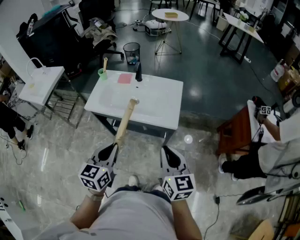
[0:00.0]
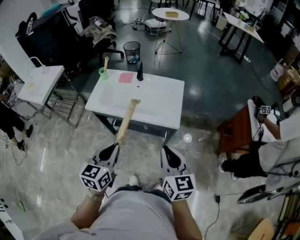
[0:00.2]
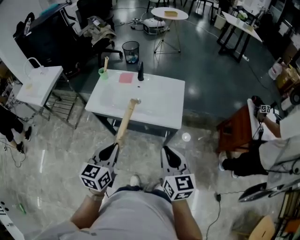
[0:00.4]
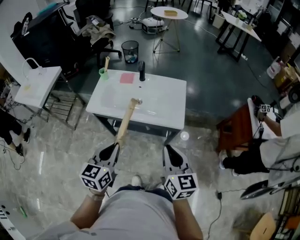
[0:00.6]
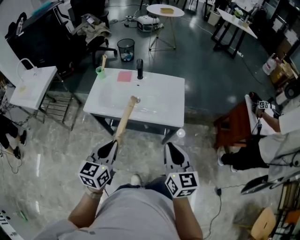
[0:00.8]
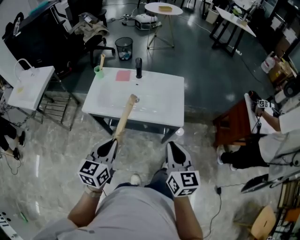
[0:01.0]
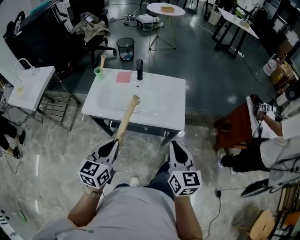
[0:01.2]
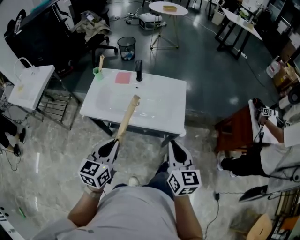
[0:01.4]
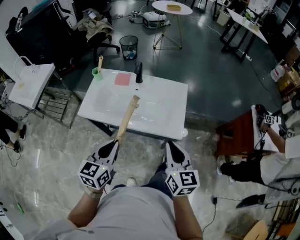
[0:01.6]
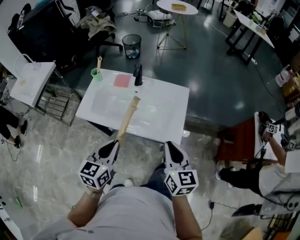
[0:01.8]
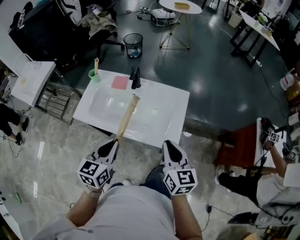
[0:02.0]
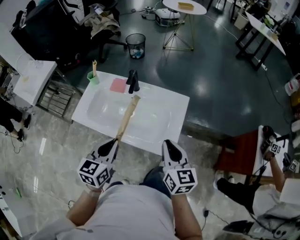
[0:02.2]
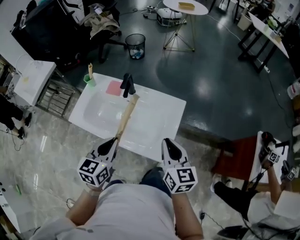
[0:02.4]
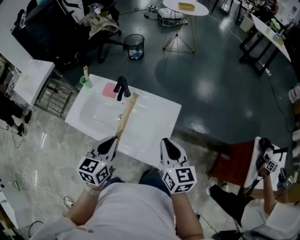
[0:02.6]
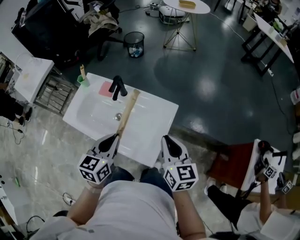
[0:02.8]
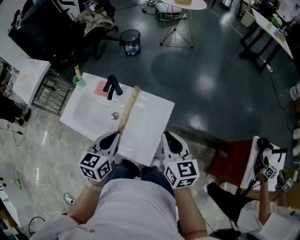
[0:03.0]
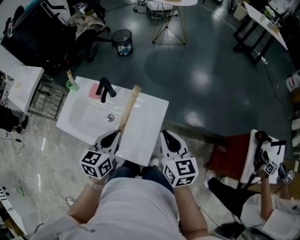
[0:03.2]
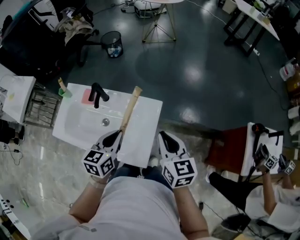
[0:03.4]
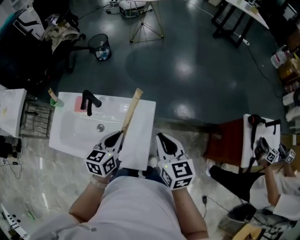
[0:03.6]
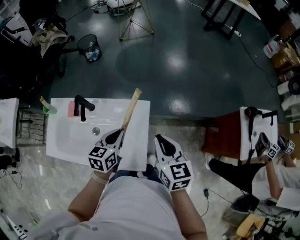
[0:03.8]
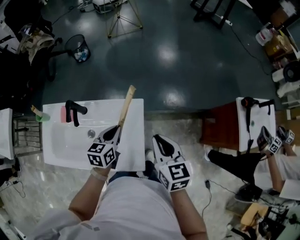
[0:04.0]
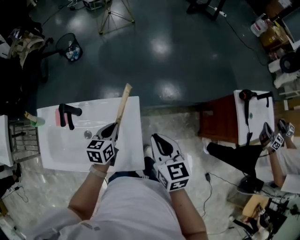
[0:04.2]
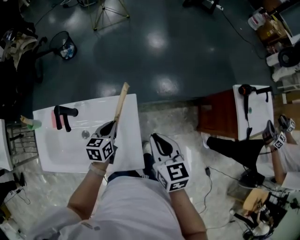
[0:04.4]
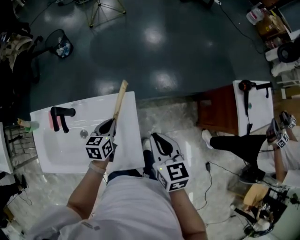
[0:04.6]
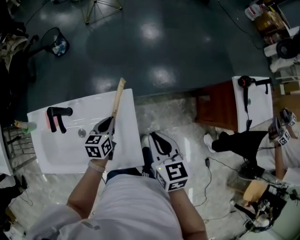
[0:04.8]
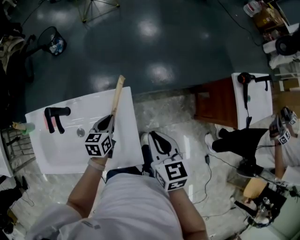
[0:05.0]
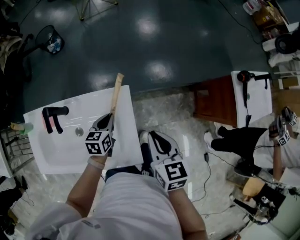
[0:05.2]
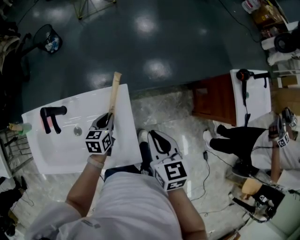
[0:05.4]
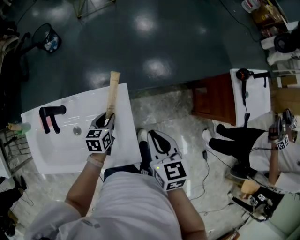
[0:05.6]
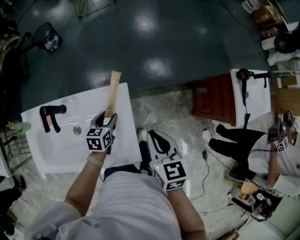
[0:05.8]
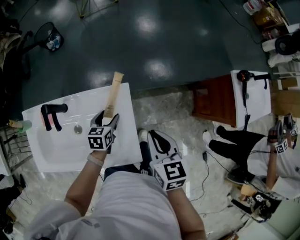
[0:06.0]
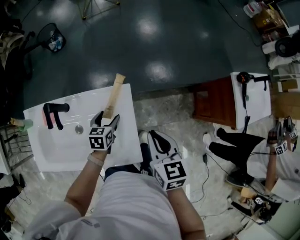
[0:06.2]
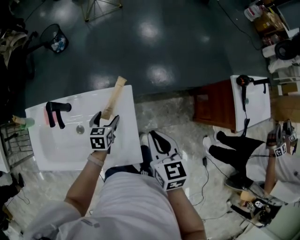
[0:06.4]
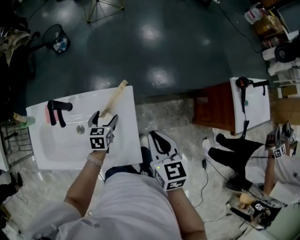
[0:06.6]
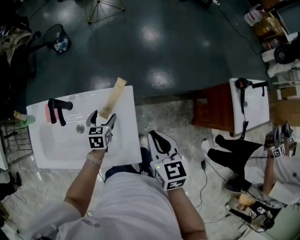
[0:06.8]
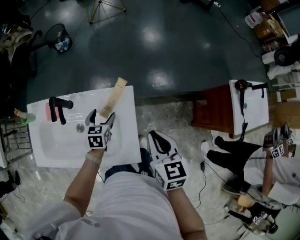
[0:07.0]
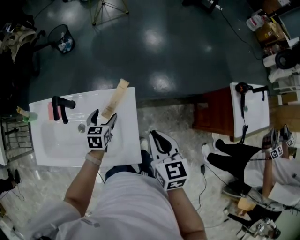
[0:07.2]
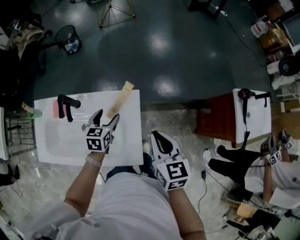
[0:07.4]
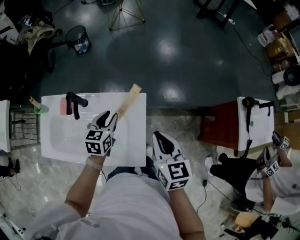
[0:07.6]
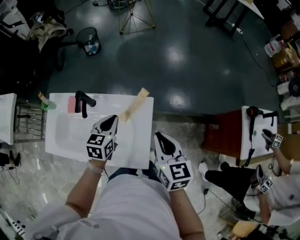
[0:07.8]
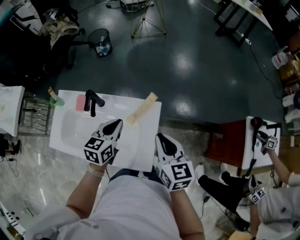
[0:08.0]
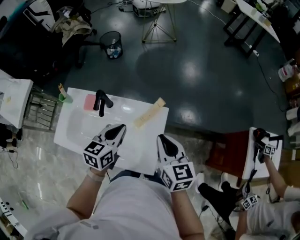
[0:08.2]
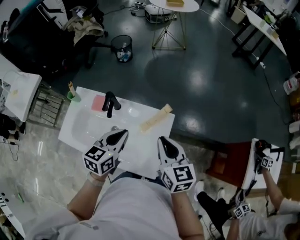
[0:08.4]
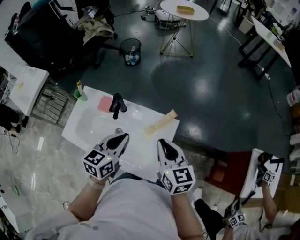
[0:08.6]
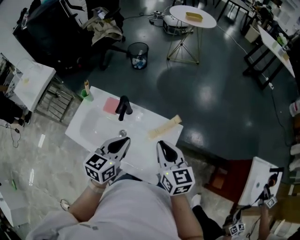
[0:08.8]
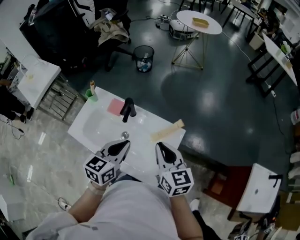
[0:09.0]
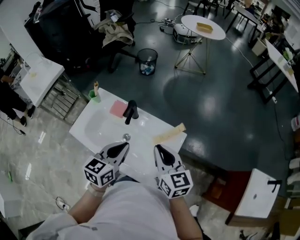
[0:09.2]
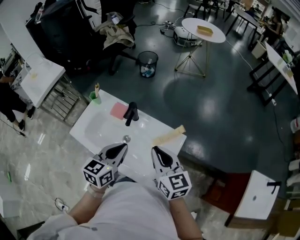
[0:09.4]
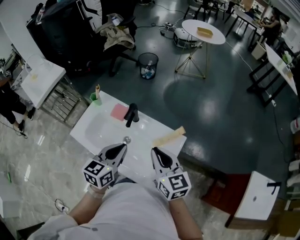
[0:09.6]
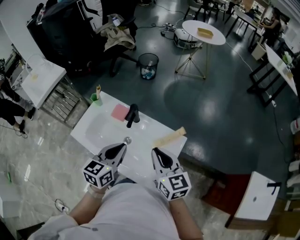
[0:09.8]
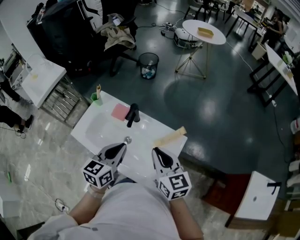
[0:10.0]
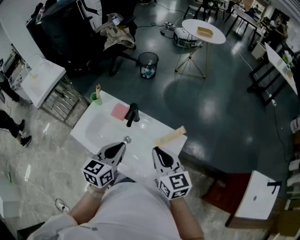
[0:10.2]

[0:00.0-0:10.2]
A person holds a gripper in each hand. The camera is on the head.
0.0 to 1.4 s: The right gripper moves forward, about 10 cm. The left gripper goes some 15 cm forward and to the left.
1.4 to 3.0 s: Both grippers are carried forward and to the right, some 40 cm.
3.0 to 4.4 s: The left gripper shifts roughly 30 cm forward and downward, and turns by approximately 30 degrees; the right gripper is displaced forward and downward by roughly 10 cm, and rotates some 30 degrees.
4.4 to 5.8 s: The left gripper moves downward, some 10 cm, and opens up.
5.8 to 7.2 s: The left gripper moves to the left, about 5 cm, and opens.
7.2 to 8.8 s: The left gripper is displaced upward, backward and to the left by some 30 cm, swivels about 20 degrees, and closes its fingers; the right gripper moves to the left and upward, roughly 20 cm, and rotates some 30 degrees.
8.8 to 10.2 s: Both grippers travel together to the left, roughly 5 cm.

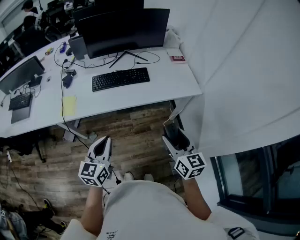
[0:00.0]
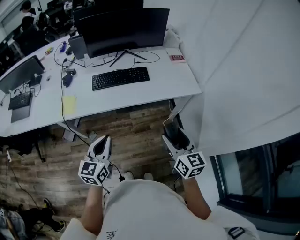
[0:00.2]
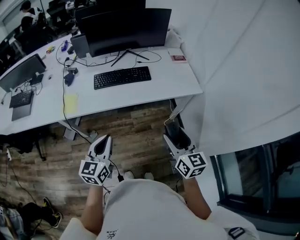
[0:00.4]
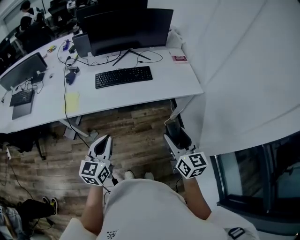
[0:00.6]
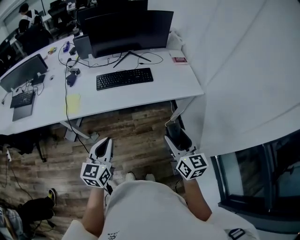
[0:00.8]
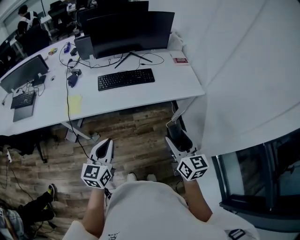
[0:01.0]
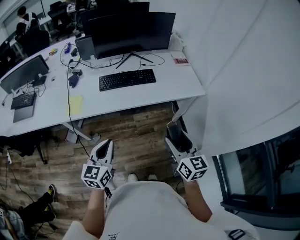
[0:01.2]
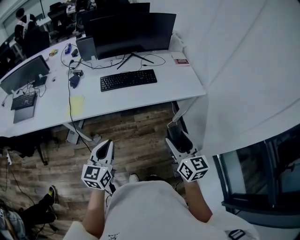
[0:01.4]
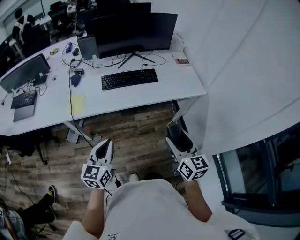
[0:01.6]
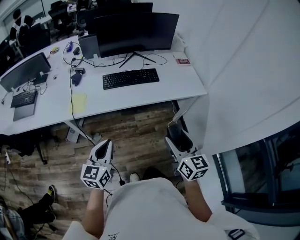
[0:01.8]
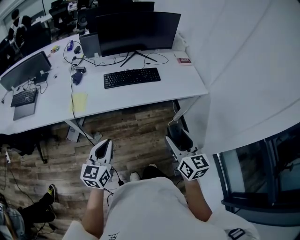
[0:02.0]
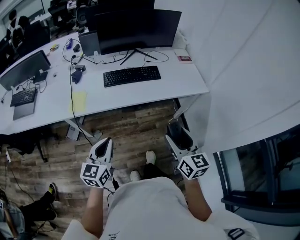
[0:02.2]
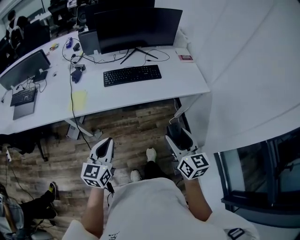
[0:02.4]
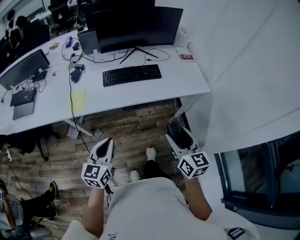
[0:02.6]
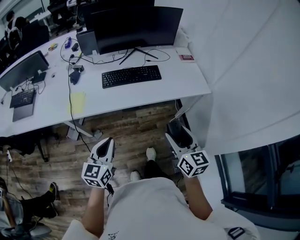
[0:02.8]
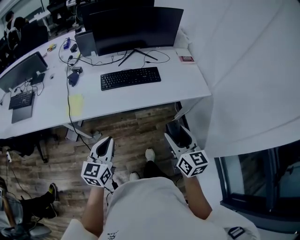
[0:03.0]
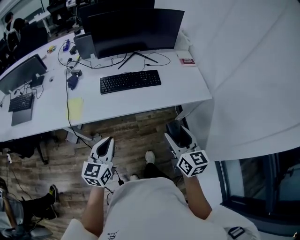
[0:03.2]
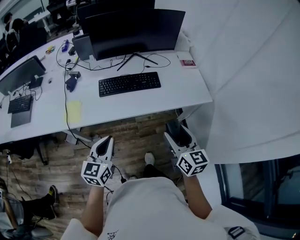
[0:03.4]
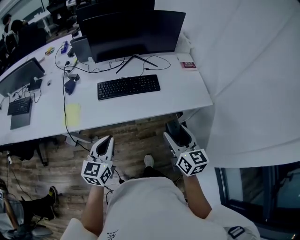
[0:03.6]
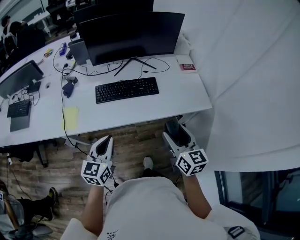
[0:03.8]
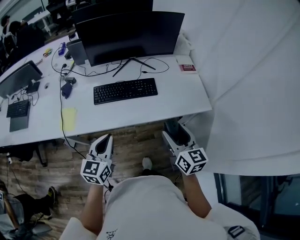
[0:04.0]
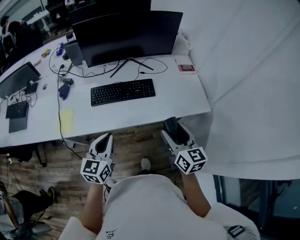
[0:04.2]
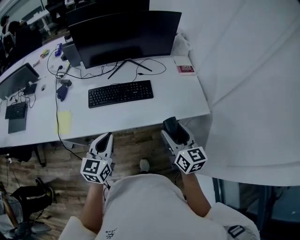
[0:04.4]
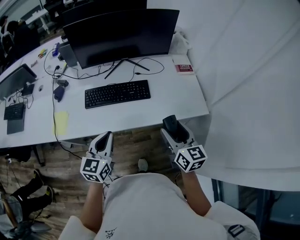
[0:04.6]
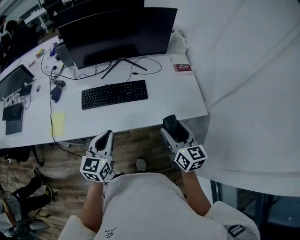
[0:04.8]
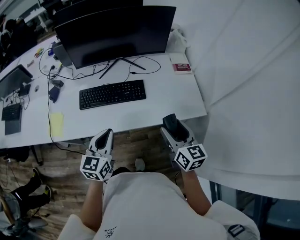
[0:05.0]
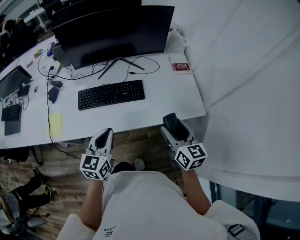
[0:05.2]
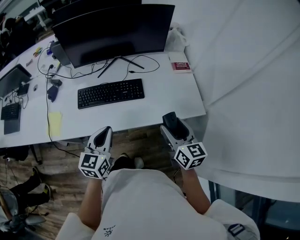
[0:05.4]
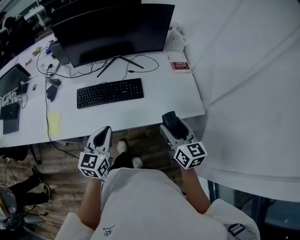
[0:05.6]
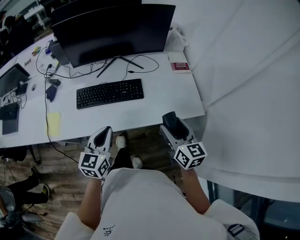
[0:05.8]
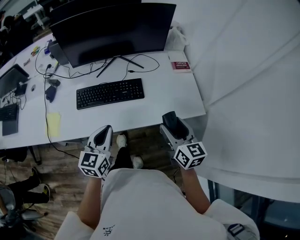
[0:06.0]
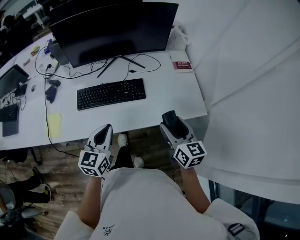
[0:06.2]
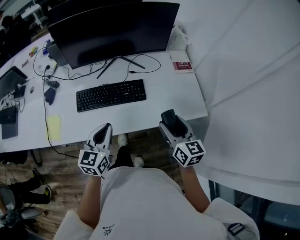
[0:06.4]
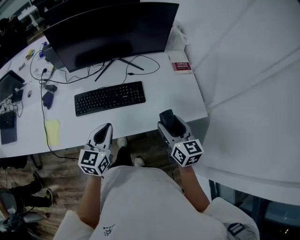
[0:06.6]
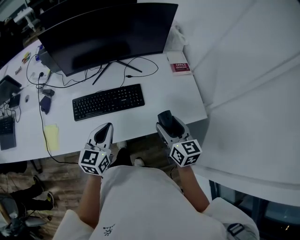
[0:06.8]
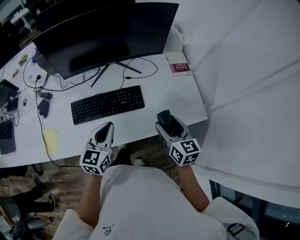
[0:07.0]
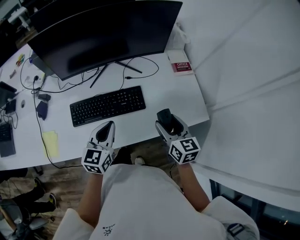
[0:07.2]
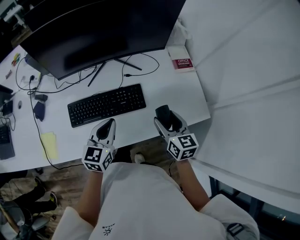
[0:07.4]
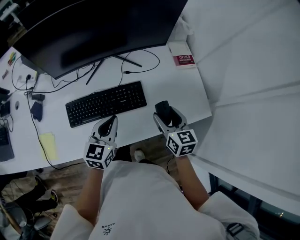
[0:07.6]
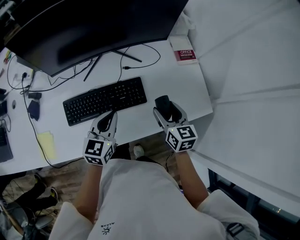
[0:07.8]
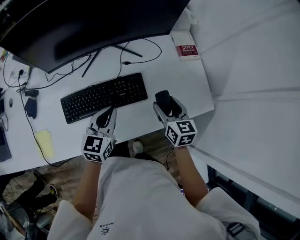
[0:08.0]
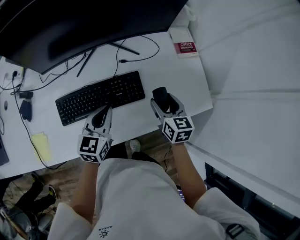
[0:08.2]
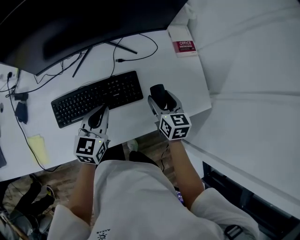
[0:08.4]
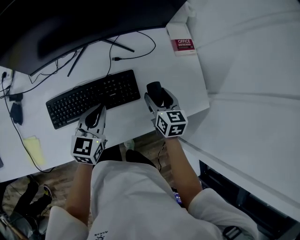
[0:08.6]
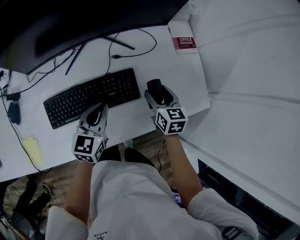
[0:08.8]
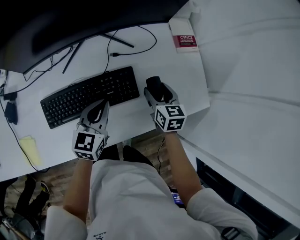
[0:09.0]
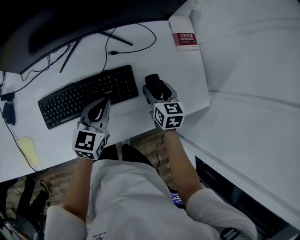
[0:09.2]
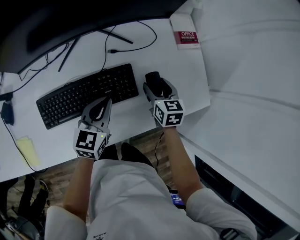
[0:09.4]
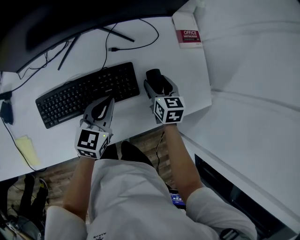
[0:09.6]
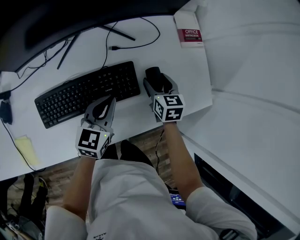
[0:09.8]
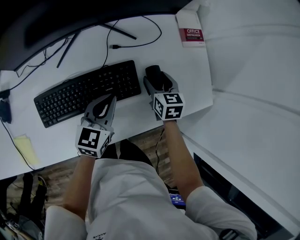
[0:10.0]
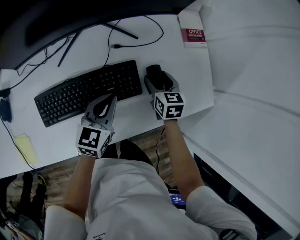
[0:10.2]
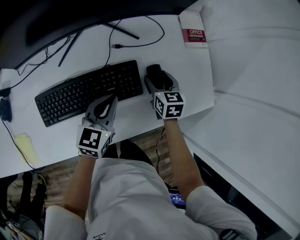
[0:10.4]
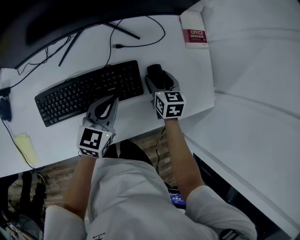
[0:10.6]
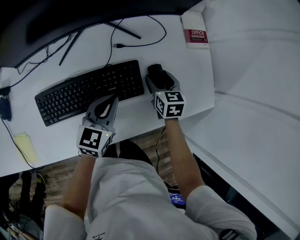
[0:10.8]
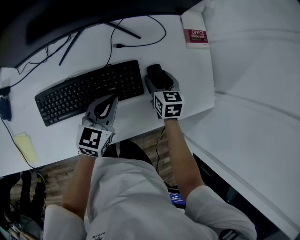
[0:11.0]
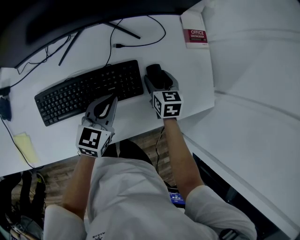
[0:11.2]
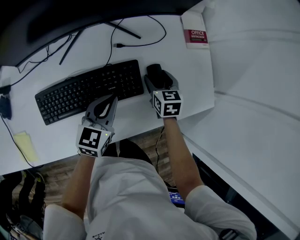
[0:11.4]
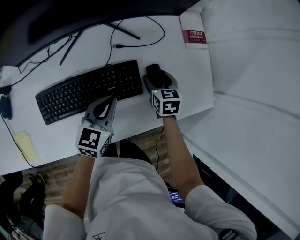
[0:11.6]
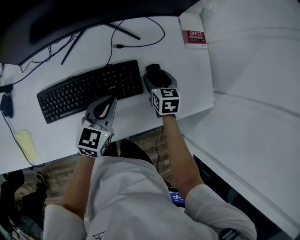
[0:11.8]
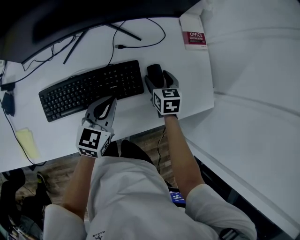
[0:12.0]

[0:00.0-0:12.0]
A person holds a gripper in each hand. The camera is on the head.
0.0 to 1.6 s: Both grippers move to the left, approximately 5 cm.
1.6 to 3.0 s: Both grippers travel together forward, roughly 5 cm.
3.0 to 4.4 s: Both grippers move forward and to the right, about 20 cm.
4.4 to 6.0 s: The right gripper is displaced forward by some 5 cm, while the left gripper is displaced forward and to the right by roughly 10 cm.
6.0 to 7.6 s: The left gripper heads forward, covering some 15 cm. The right gripper heads forward and downward, covering approximately 15 cm.
7.6 to 9.0 s: Both grippers move downward and forward, some 10 cm.
9.0 to 10.4 s: The right gripper ends up approximately 5 cm from where it was.
10.4 to 12.0 s: The grippers stay close to where they were, moving slightly.

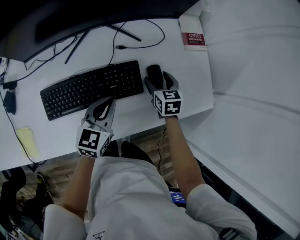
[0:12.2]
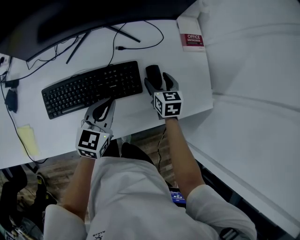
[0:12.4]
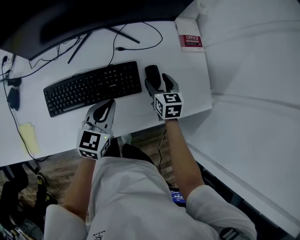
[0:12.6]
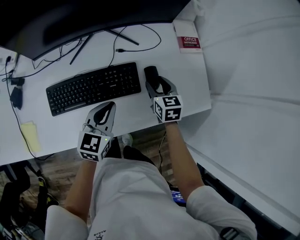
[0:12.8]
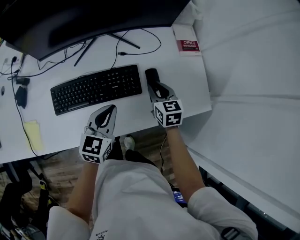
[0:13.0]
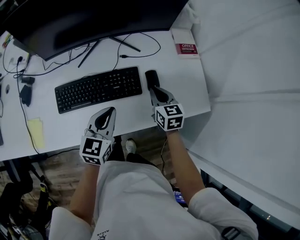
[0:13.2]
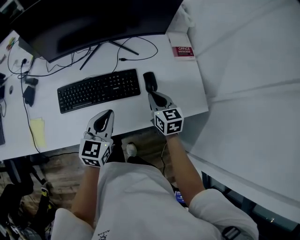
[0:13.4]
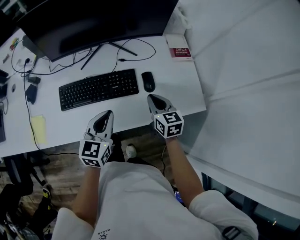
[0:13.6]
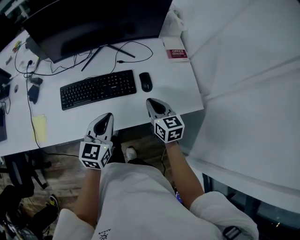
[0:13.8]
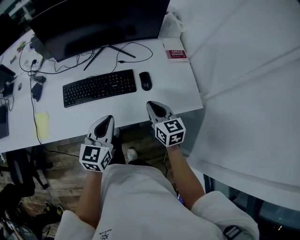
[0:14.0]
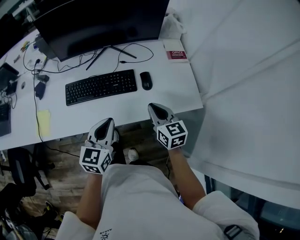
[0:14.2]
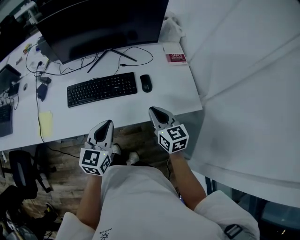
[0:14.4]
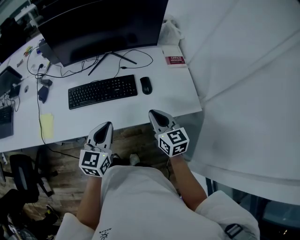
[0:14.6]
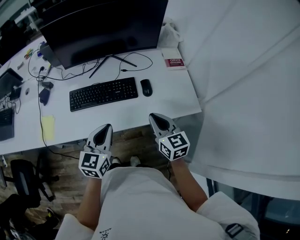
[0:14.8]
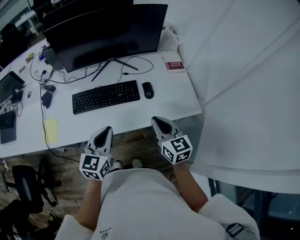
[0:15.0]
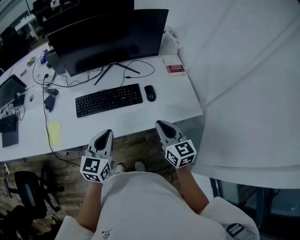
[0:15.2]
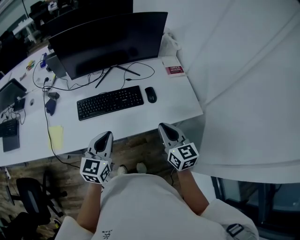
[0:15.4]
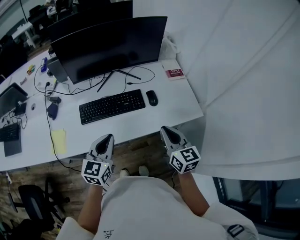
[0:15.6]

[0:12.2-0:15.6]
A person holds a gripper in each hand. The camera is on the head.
12.2 to 13.8 s: The left gripper is displaced backward and upward by some 15 cm, while the right gripper goes roughly 20 cm upward and backward, turns by about 20 degrees, and closes.
13.8 to 15.6 s: The right gripper travels backward and upward by approximately 20 cm. The left gripper is displaced backward, to the left and upward by some 15 cm.
